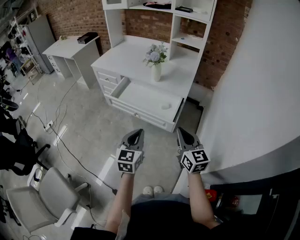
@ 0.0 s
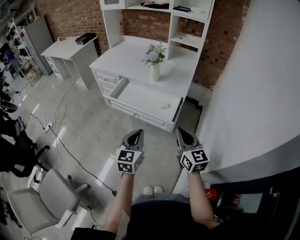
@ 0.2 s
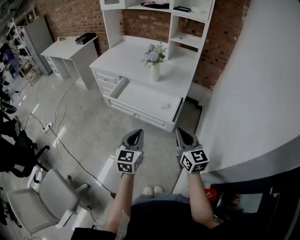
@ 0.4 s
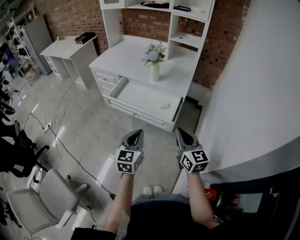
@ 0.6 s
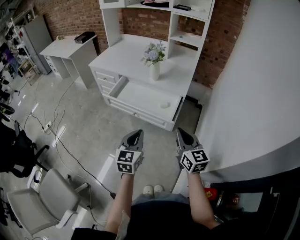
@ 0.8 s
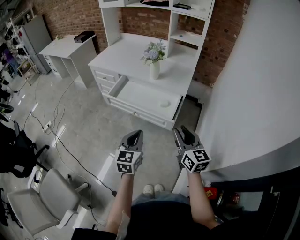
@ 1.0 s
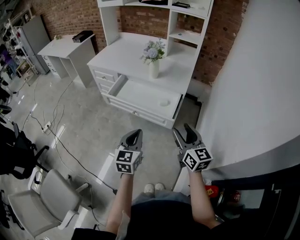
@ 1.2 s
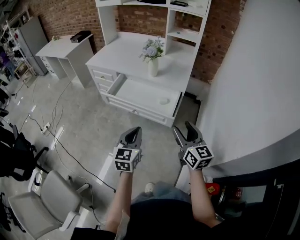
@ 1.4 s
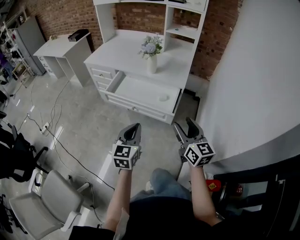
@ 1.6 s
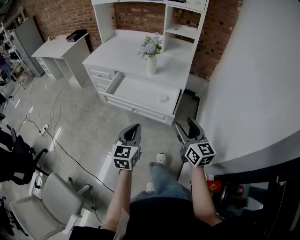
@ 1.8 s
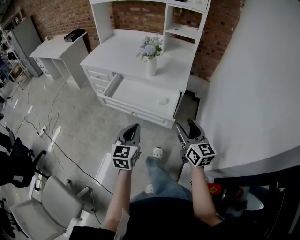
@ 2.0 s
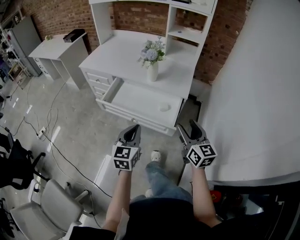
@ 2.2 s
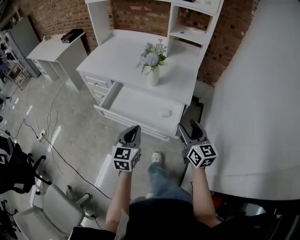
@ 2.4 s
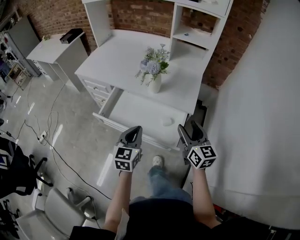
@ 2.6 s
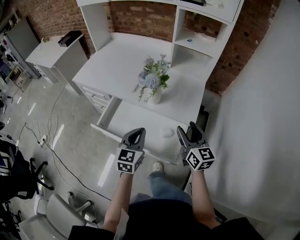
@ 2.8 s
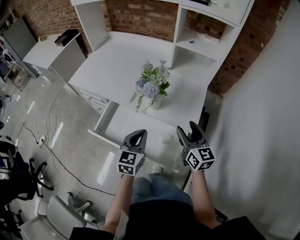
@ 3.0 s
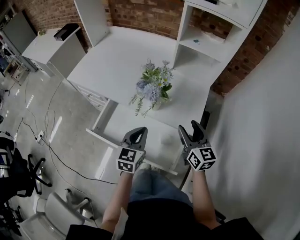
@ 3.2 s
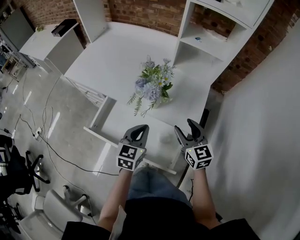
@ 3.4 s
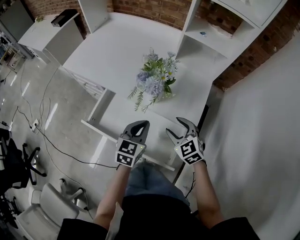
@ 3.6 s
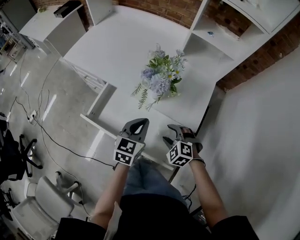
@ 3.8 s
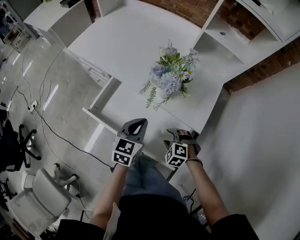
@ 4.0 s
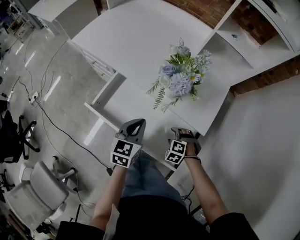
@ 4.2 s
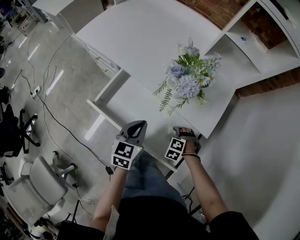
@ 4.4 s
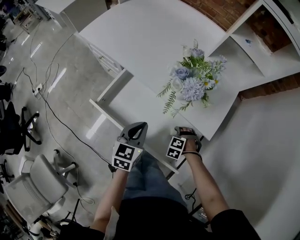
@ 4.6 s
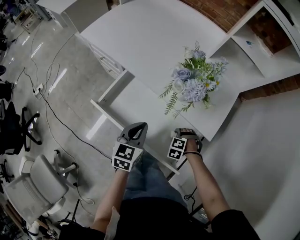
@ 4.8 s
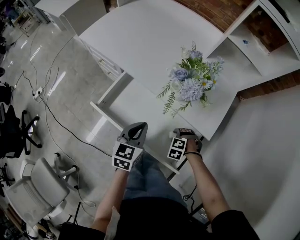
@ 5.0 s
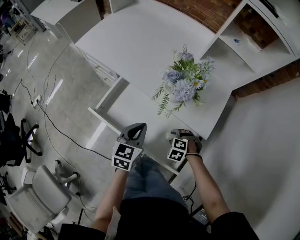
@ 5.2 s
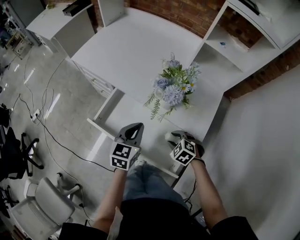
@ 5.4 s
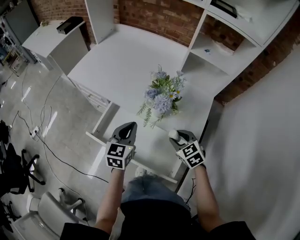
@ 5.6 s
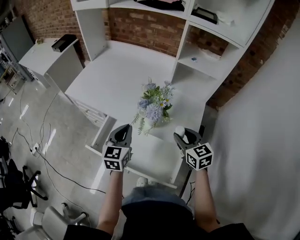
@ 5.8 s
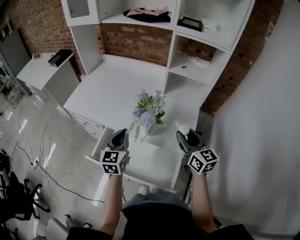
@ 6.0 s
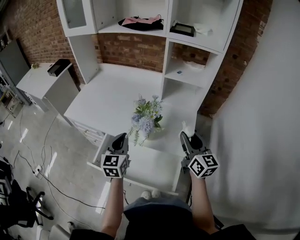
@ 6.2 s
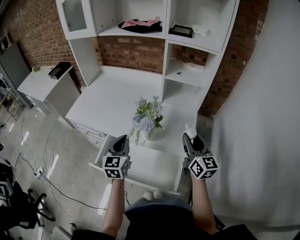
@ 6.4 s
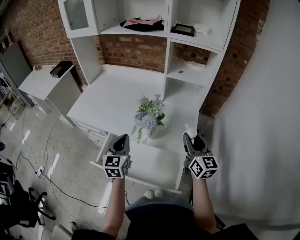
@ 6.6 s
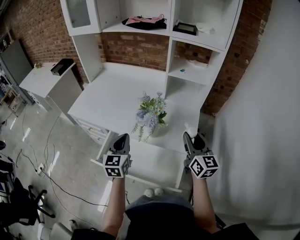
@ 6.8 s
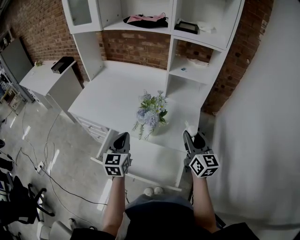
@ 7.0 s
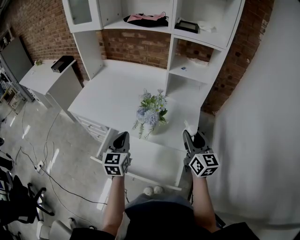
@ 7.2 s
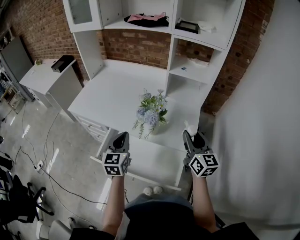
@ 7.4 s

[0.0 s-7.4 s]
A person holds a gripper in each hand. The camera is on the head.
0.0 to 1.4 s: The right gripper opens up.
1.4 to 3.0 s: Both grippers travel together forward, approximately 35 cm.
3.0 to 4.4 s: The right gripper travels downward by approximately 30 cm, and angles its fingers downward, by approximately 70 degrees, while the left gripper heads downward, covering about 10 cm.
4.4 to 6.0 s: The right gripper heads upward, covering about 35 cm, points its fingers about 70 degrees further upward, and closes. Meanwhile the left gripper travels upward by some 15 cm.
6.0 to 7.4 s: The grippers move only a little.

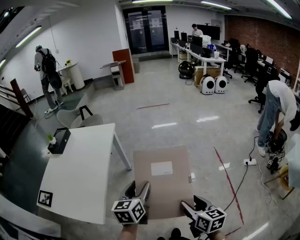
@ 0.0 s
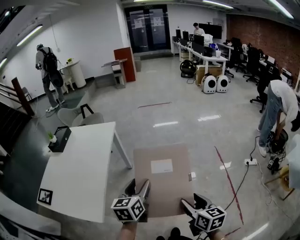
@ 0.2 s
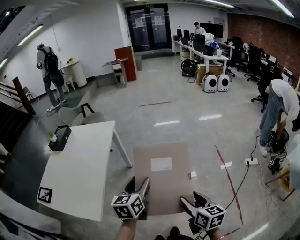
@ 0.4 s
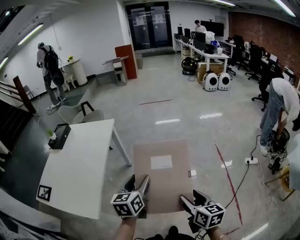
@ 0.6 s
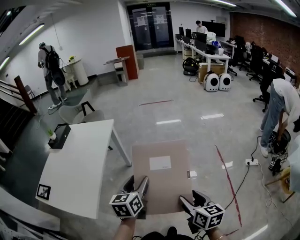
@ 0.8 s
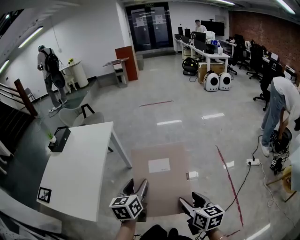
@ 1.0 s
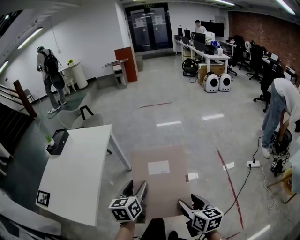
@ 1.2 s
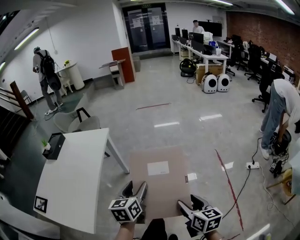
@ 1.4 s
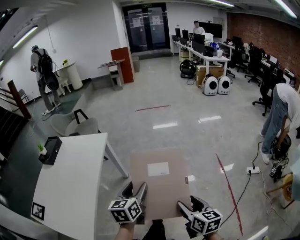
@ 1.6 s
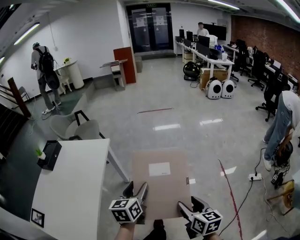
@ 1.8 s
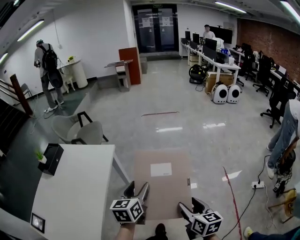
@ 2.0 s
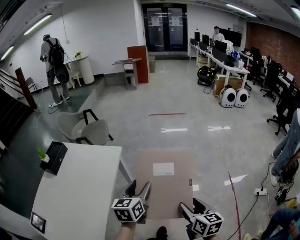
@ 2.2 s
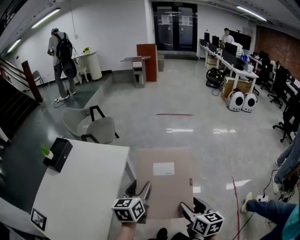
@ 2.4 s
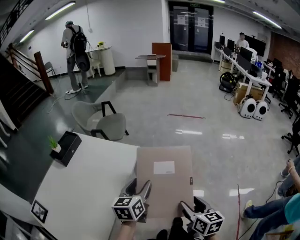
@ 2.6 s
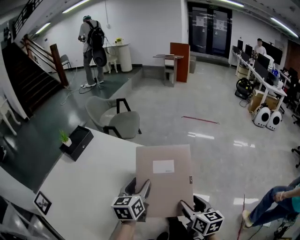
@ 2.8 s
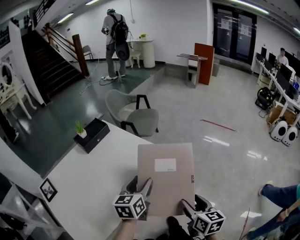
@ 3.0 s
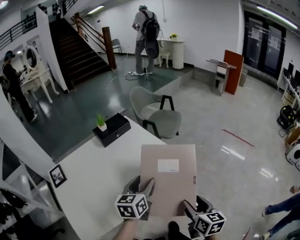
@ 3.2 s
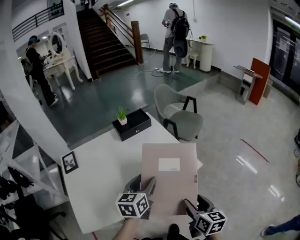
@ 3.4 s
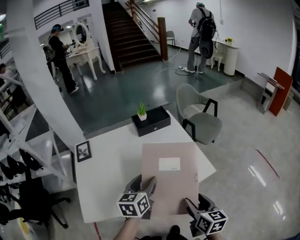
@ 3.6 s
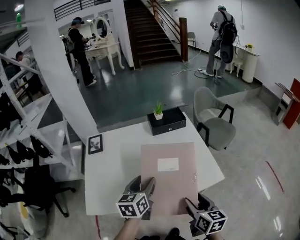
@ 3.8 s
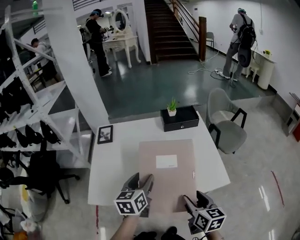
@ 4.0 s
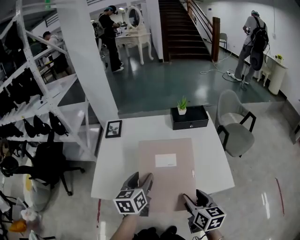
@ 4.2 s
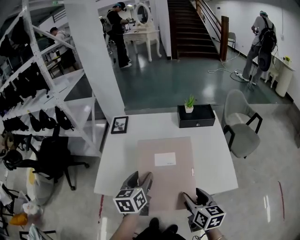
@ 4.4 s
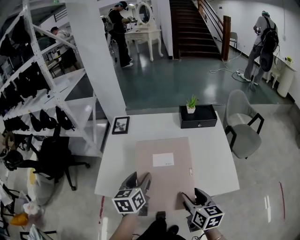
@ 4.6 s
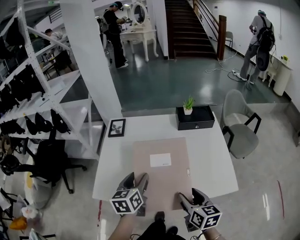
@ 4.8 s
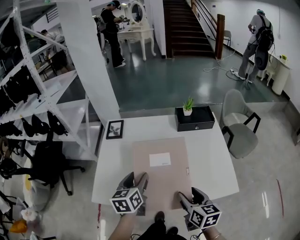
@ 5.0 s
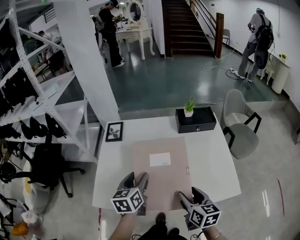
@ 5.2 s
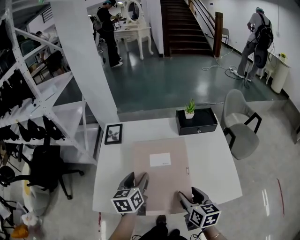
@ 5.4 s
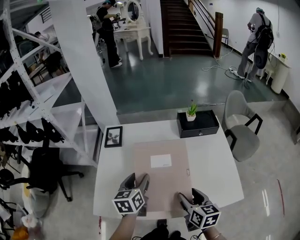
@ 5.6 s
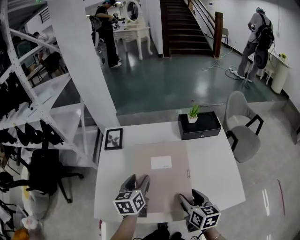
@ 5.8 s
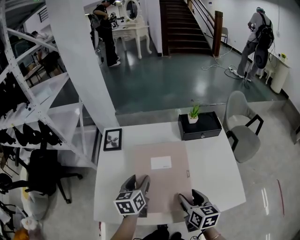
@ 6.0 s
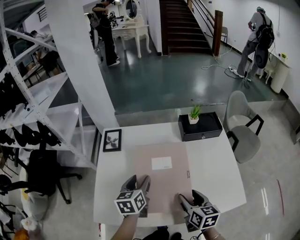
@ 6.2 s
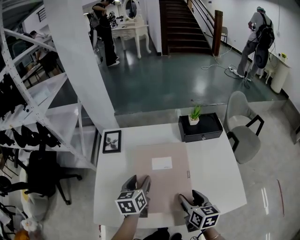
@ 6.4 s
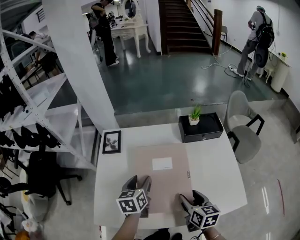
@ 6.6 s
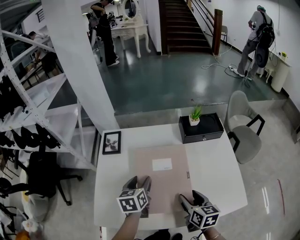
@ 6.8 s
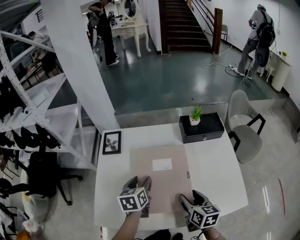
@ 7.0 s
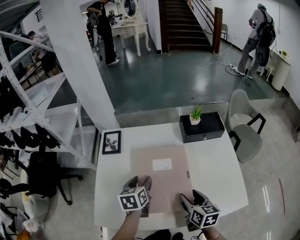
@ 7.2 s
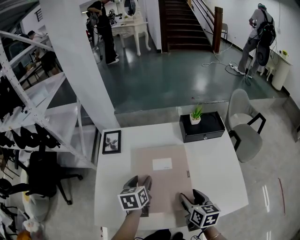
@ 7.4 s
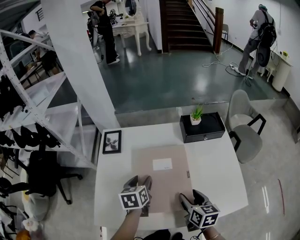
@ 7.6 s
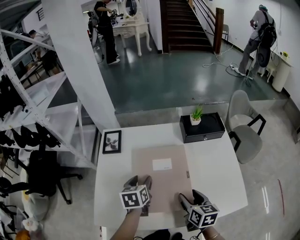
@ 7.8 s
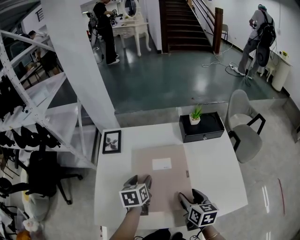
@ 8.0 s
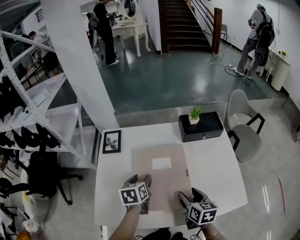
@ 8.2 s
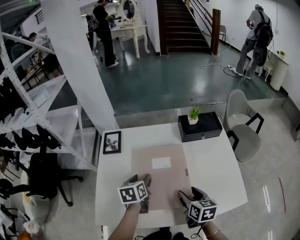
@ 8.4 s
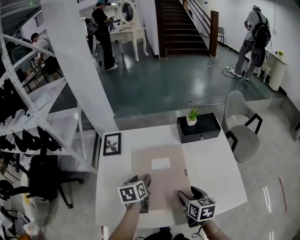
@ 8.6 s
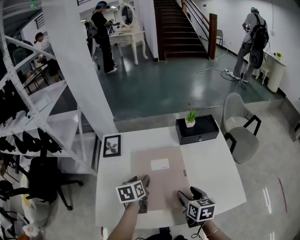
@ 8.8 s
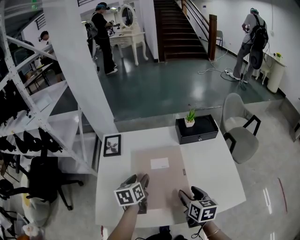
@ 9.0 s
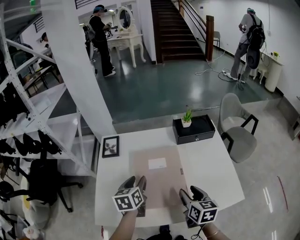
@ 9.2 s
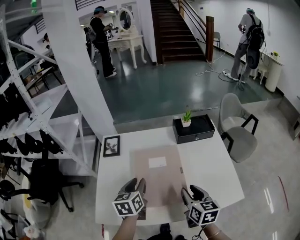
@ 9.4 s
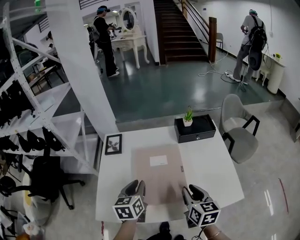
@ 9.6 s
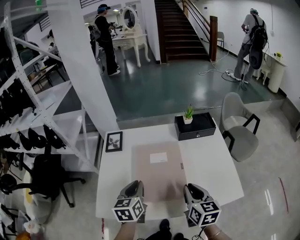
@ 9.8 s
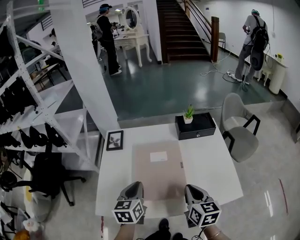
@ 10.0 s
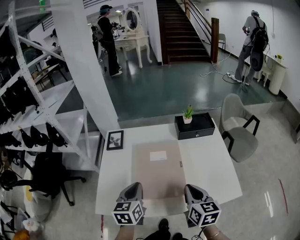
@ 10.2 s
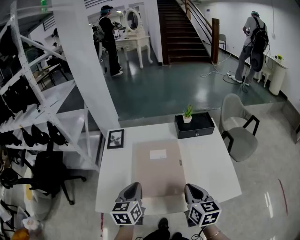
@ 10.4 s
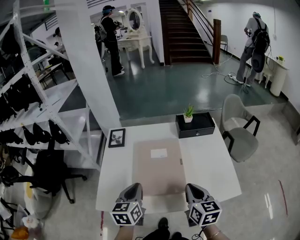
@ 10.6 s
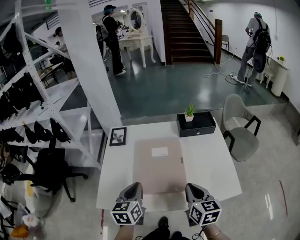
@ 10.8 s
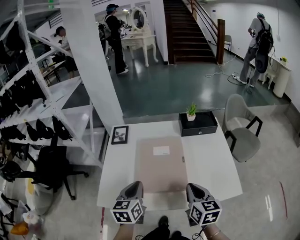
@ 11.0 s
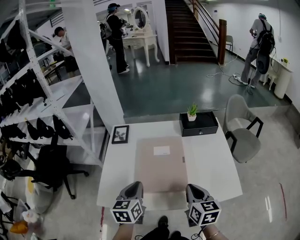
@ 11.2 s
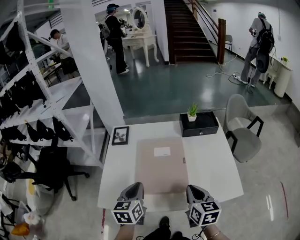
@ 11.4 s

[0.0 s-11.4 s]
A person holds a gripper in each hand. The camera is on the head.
0.0 to 1.4 s: Both grippers move forward and to the right, roughly 10 cm.
1.4 to 2.8 s: Both grippers move forward and to the left, about 40 cm. The right gripper rotates about 20 degrees; the left gripper rotates roughly 20 degrees.
2.8 to 4.2 s: The right gripper shifts by about 30 cm, and rotates about 70 degrees. Meanwhile the left gripper changes place by some 25 cm, and swivels roughly 70 degrees.
4.2 to 5.6 s: Both grippers travel together forward, some 10 cm.
5.6 to 7.2 s: The left gripper goes some 10 cm forward and downward; the right gripper goes approximately 5 cm forward.
7.2 to 8.6 s: There are only small adjustments of the grippers.
8.6 to 10.0 s: The right gripper goes about 10 cm upward and backward, and closes. Meanwhile the left gripper shifts roughly 15 cm backward and upward, and closes its fingers.
10.0 to 11.4 s: The grippers make only small movements.

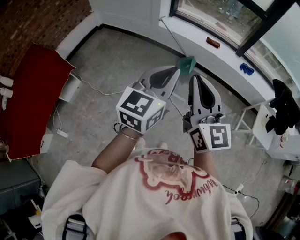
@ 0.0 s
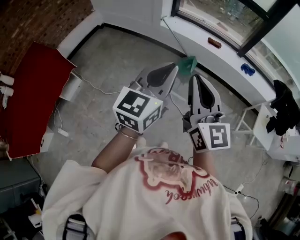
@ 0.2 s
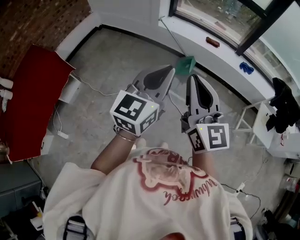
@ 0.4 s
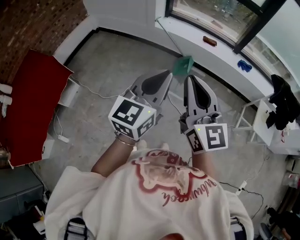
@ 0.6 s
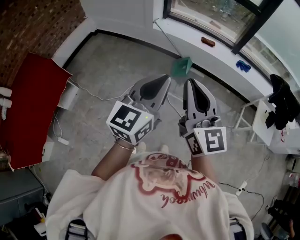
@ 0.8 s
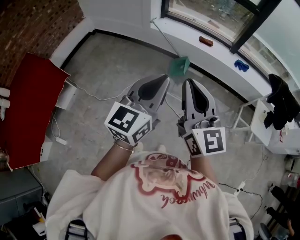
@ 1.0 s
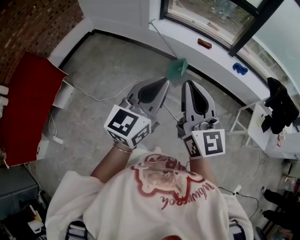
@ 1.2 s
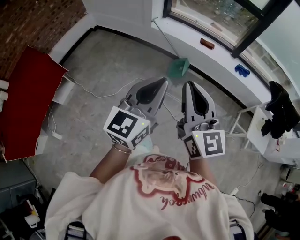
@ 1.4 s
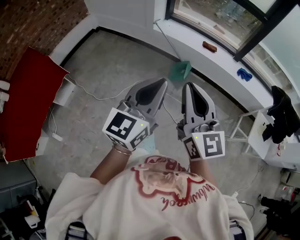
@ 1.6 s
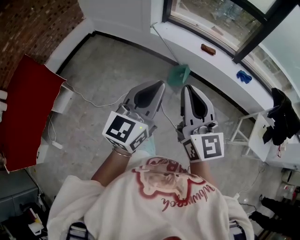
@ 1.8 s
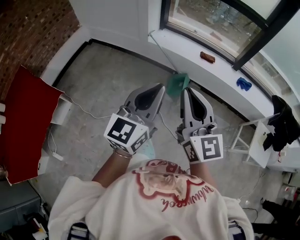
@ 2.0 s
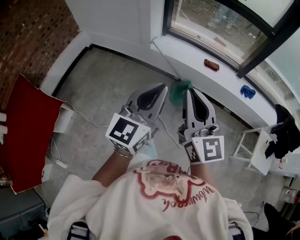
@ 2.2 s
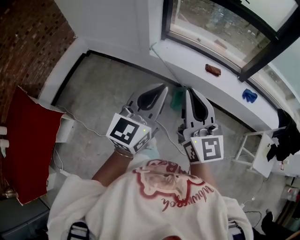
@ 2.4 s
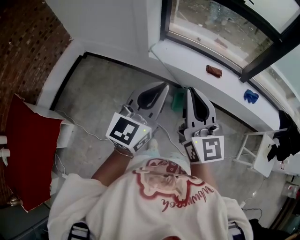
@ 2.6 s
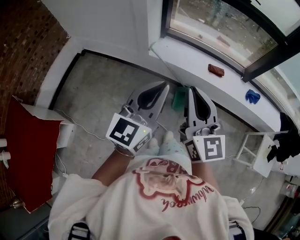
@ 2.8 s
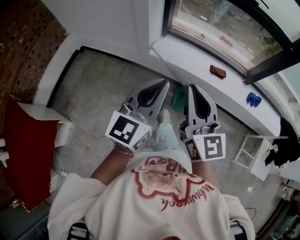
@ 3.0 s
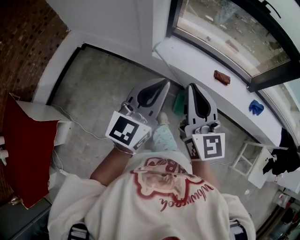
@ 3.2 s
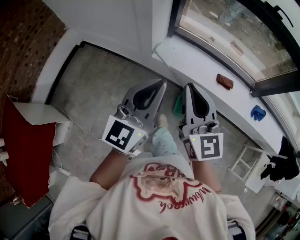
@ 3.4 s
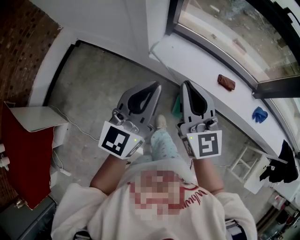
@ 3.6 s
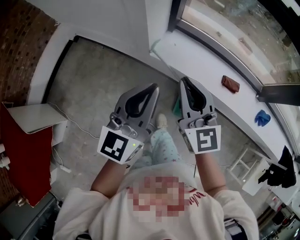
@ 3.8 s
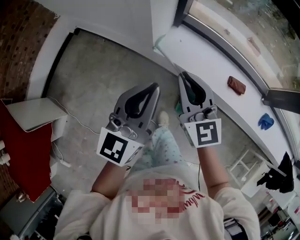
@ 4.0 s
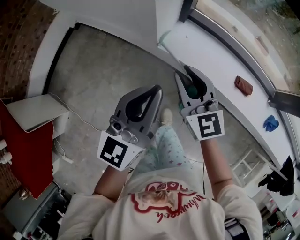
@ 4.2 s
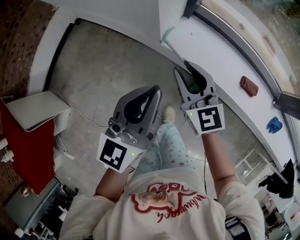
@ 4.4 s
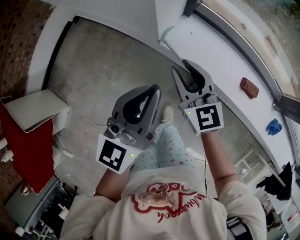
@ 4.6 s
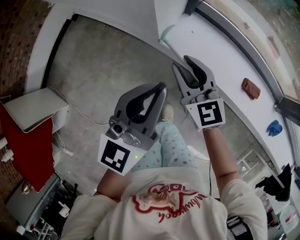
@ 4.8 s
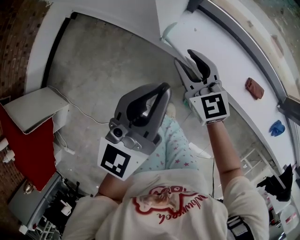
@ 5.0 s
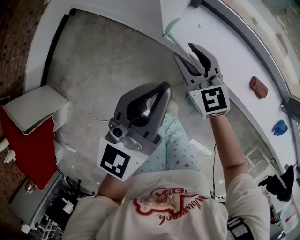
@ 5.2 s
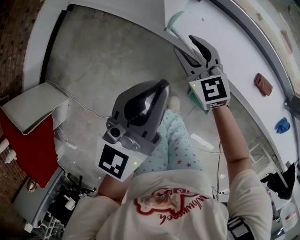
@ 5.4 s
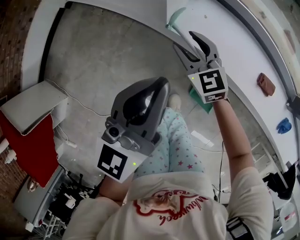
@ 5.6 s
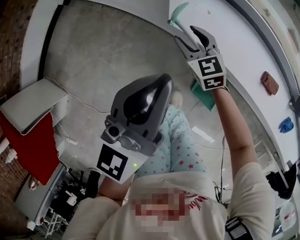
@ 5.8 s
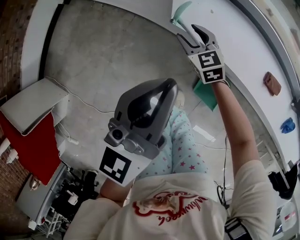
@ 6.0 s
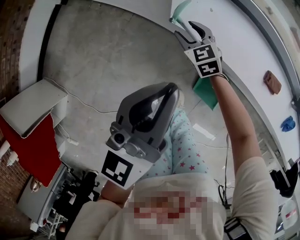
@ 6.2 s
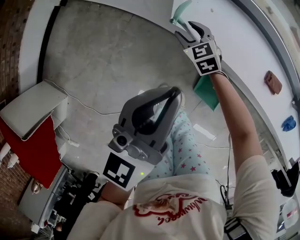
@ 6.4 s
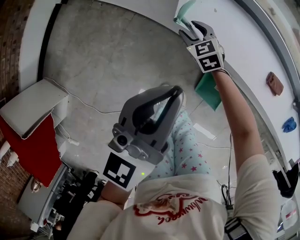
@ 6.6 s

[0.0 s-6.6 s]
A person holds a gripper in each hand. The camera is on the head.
0.0 to 1.6 s: The left gripper shifts by roughly 5 cm, while the right gripper shifts approximately 5 cm forward.
1.6 to 3.2 s: The two grippers travel together, forward, about 50 cm.
3.2 to 5.0 s: Both grippers travel together forward and downward, some 40 cm. The right gripper changes its angle by some 30 degrees, and opens its fingers.
5.0 to 6.6 s: The right gripper moves downward, about 25 cm, and changes its angle by about 30 degrees; the left gripper heads downward, covering some 10 cm.
